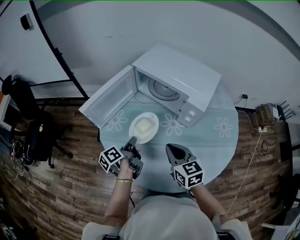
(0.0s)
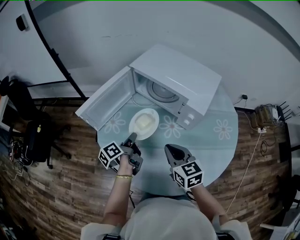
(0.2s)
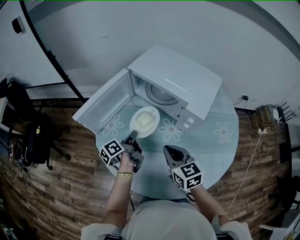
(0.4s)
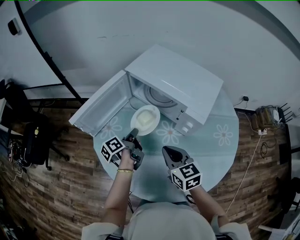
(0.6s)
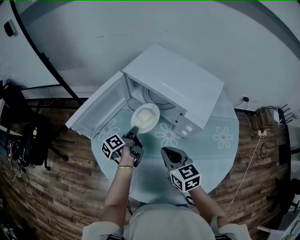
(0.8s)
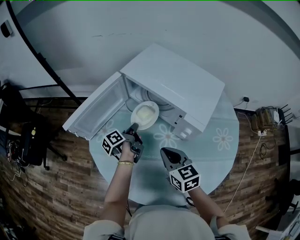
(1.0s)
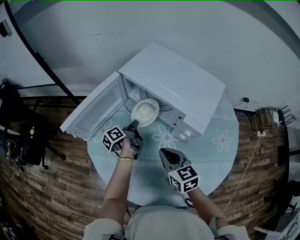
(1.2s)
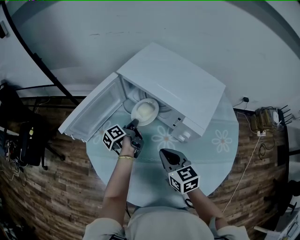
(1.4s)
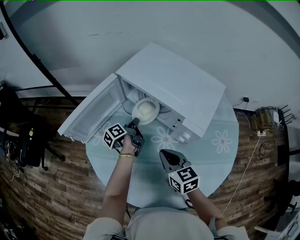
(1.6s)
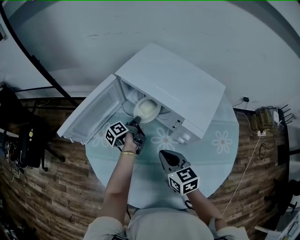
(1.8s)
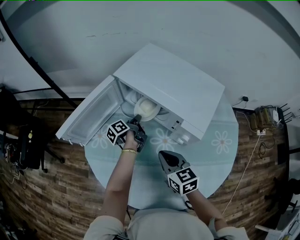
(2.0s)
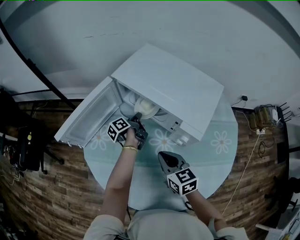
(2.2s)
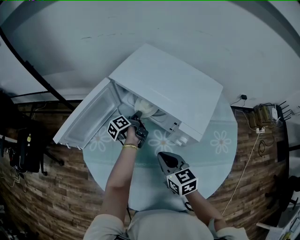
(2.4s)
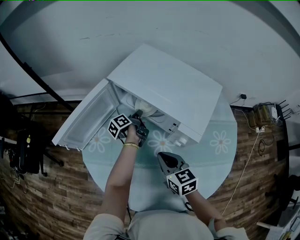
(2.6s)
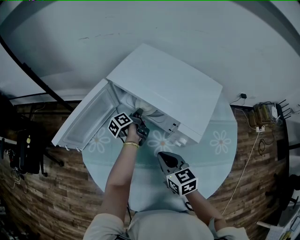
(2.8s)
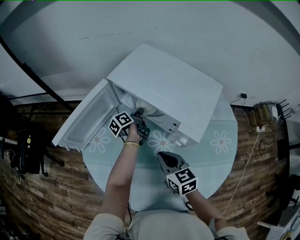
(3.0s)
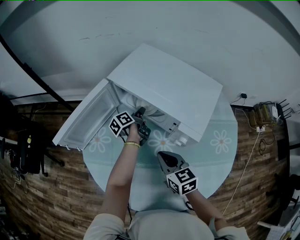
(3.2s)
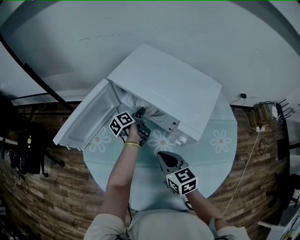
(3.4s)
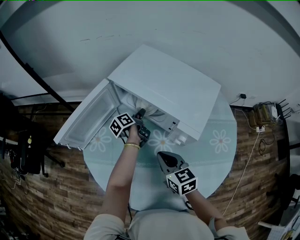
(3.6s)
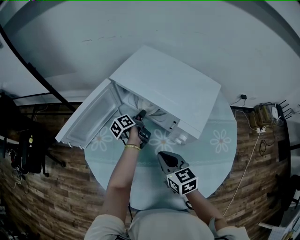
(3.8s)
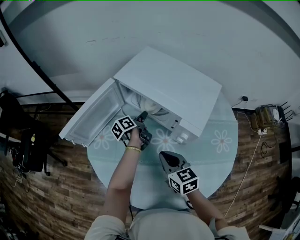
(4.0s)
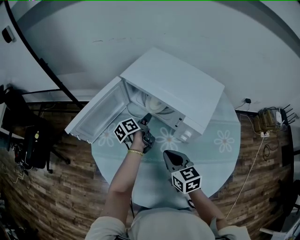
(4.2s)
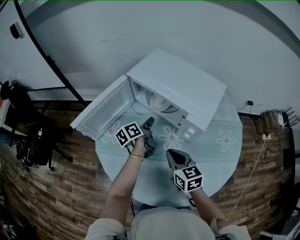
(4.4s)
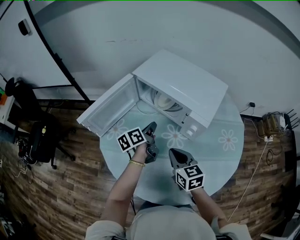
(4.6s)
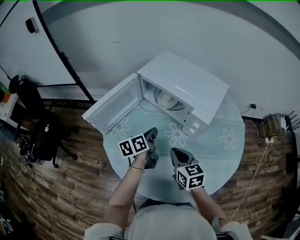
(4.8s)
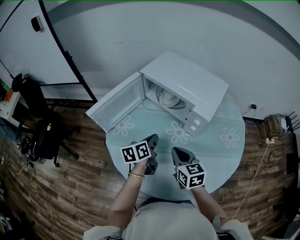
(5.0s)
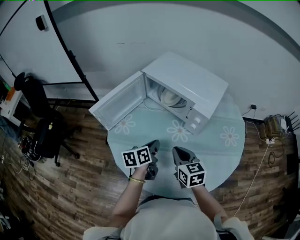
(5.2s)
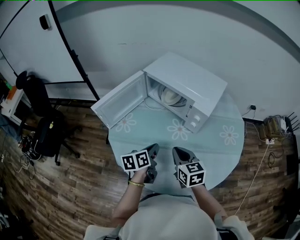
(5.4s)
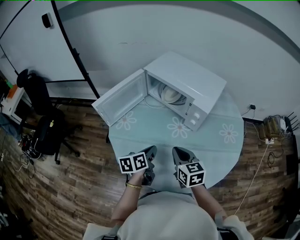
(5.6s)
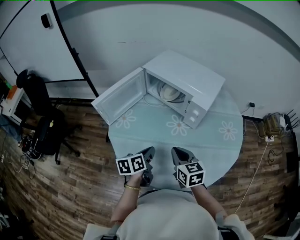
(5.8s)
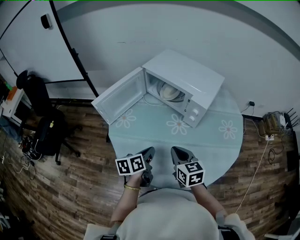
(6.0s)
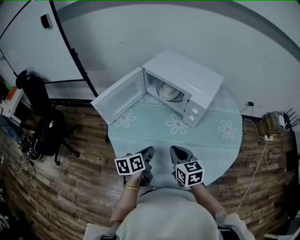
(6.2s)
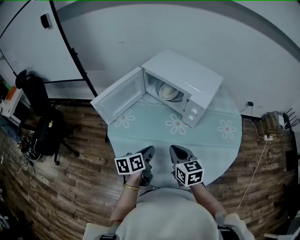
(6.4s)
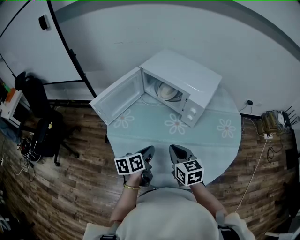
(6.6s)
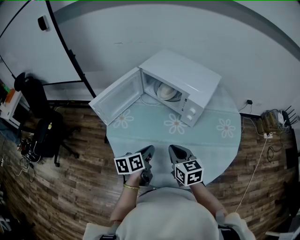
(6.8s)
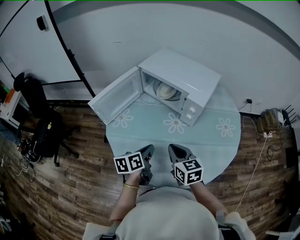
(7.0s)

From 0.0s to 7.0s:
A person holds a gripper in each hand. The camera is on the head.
From 0.0s to 1.4s: The right gripper shifts by about 10 cm.
From 4.2s to 5.6s: The right gripper ends up roughly 10 cm from where it was.

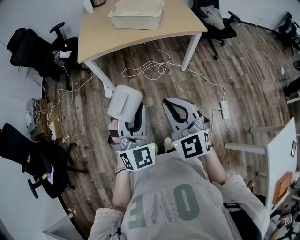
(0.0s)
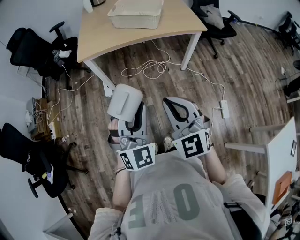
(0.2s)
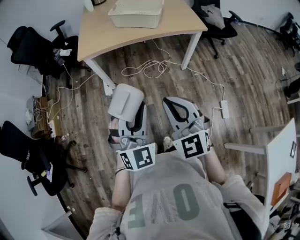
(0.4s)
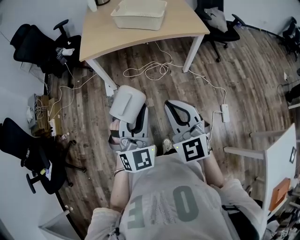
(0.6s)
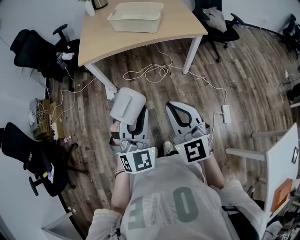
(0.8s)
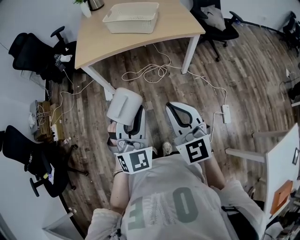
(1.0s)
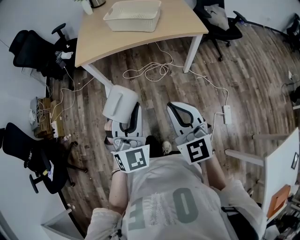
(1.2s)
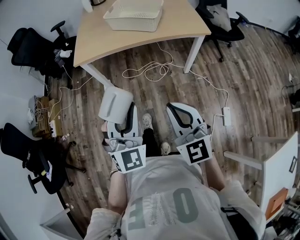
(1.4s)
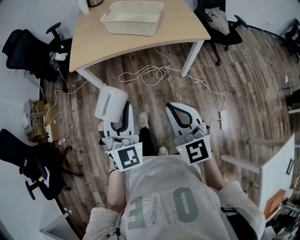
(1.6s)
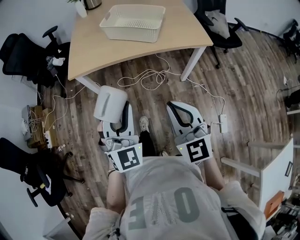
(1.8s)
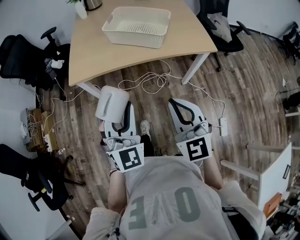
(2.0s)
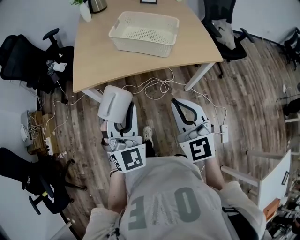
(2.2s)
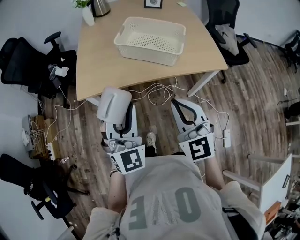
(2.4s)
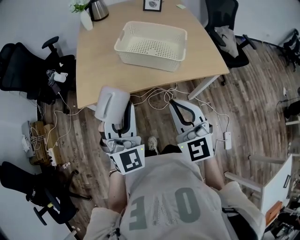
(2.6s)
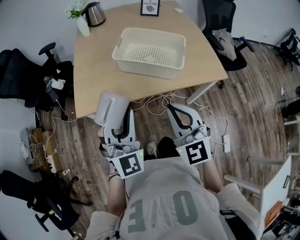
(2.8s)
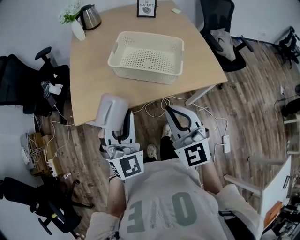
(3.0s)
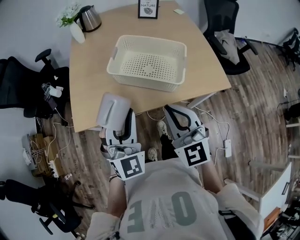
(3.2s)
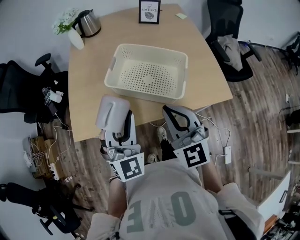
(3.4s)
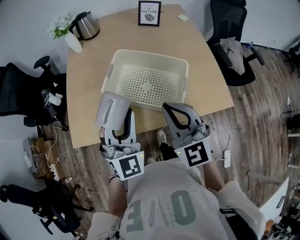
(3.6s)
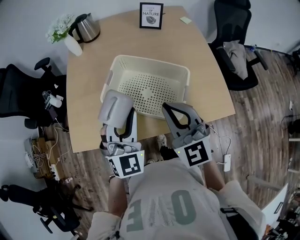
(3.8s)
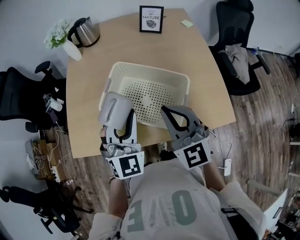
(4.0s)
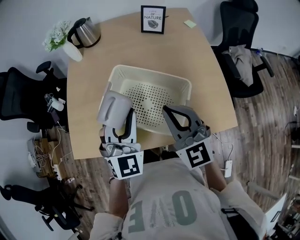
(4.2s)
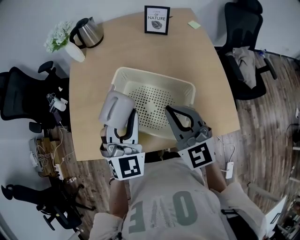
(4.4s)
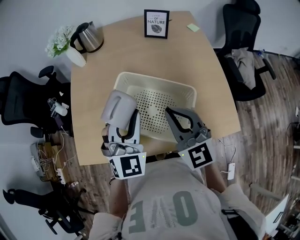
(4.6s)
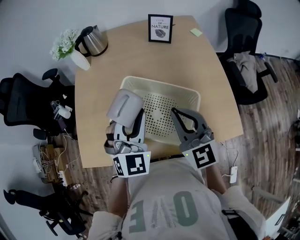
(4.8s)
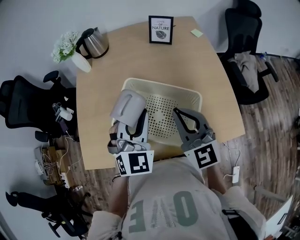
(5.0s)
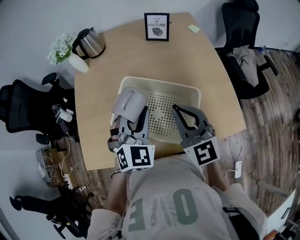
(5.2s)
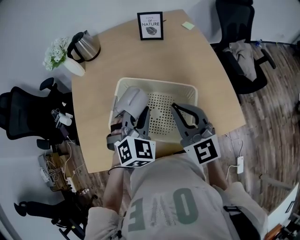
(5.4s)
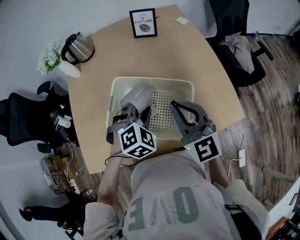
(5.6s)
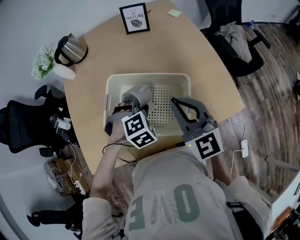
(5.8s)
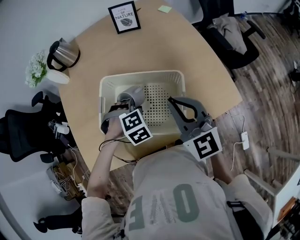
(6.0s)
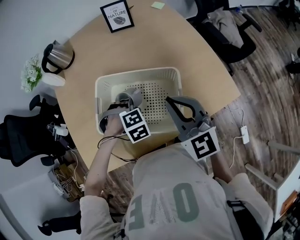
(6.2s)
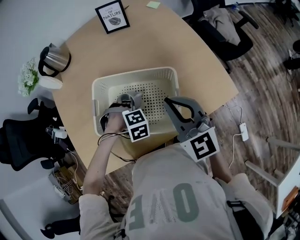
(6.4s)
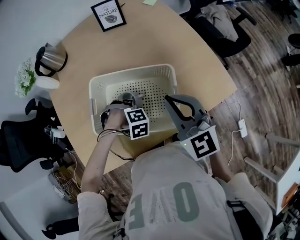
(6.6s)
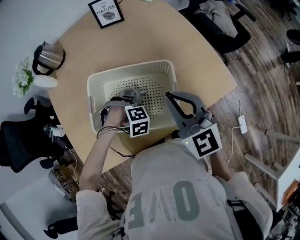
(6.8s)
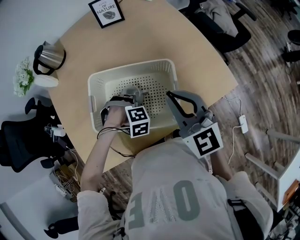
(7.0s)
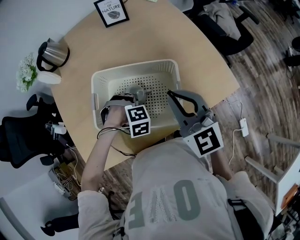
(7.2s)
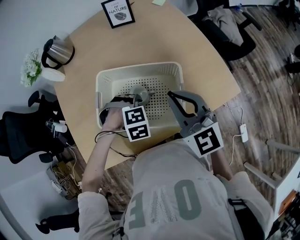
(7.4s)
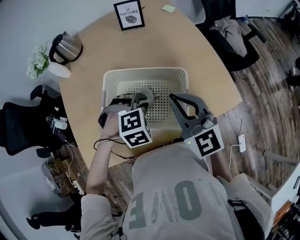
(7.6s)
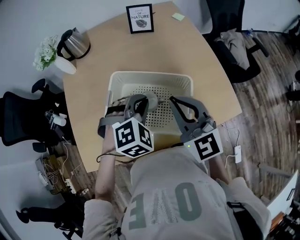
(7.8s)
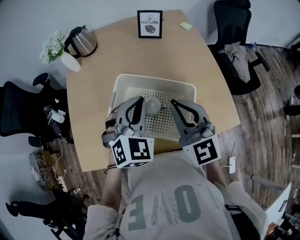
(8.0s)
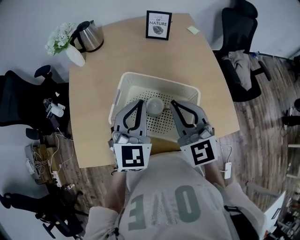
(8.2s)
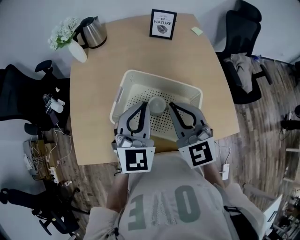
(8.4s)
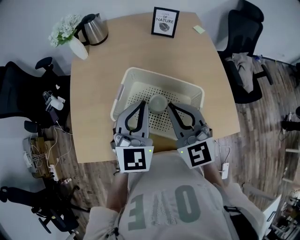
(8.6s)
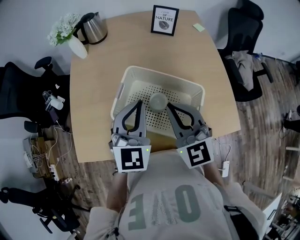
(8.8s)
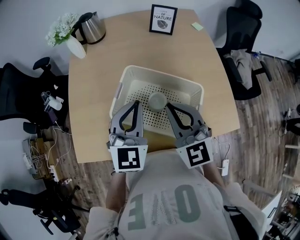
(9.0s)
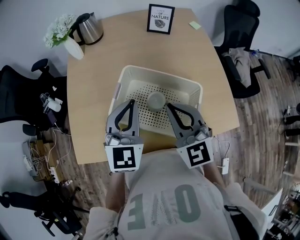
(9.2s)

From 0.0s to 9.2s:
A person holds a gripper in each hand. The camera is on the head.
From 0.0s to 1.6s: The left gripper heads forward, covering some 10 cm, while the right gripper is displaced forward and to the right by approximately 10 cm.
From 1.6s to 3.0s: The two grippers go roughly 35 cm forward.
From 3.0s to 4.6s: The right gripper goes roughly 30 cm forward. Meanwhile the left gripper shifts some 30 cm forward and to the right.
From 4.6s to 6.2s: The right gripper shifts roughly 5 cm to the right. Meanwhile the left gripper heads downward, covering approximately 20 cm, and angles its fingers downward, by some 60 degrees.
From 6.2s to 7.6s: The left gripper travels upward by about 10 cm.
From 7.6s to 9.2s: The right gripper goes about 10 cm to the left. Meanwhile the left gripper moves upward and to the left, some 15 cm, and tips its fingers upward by roughly 60 degrees.

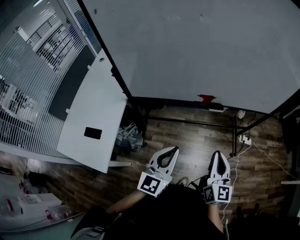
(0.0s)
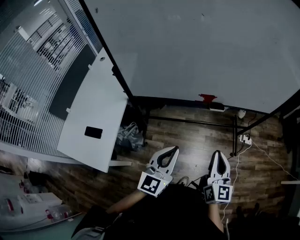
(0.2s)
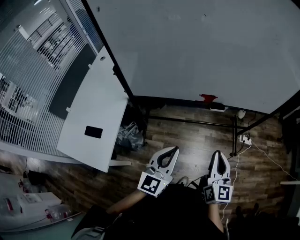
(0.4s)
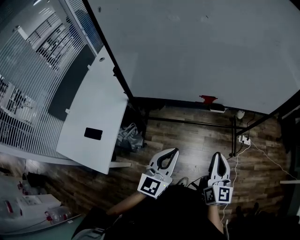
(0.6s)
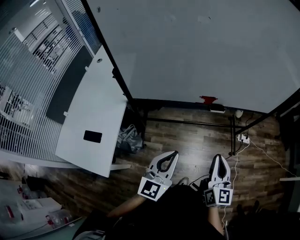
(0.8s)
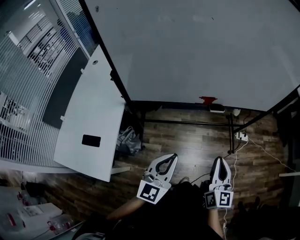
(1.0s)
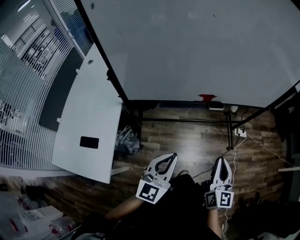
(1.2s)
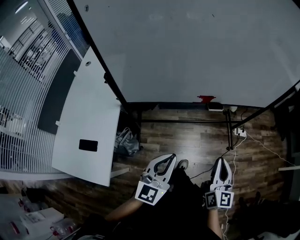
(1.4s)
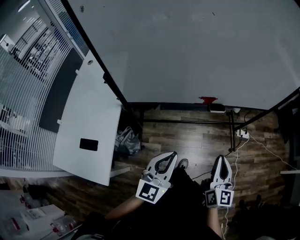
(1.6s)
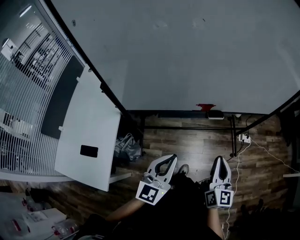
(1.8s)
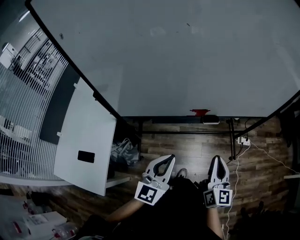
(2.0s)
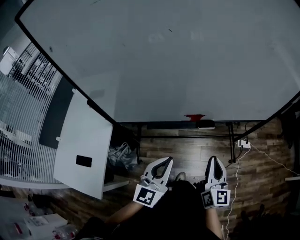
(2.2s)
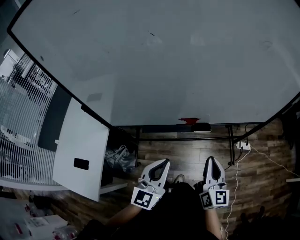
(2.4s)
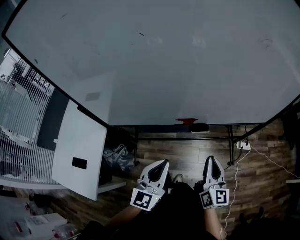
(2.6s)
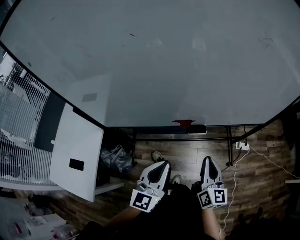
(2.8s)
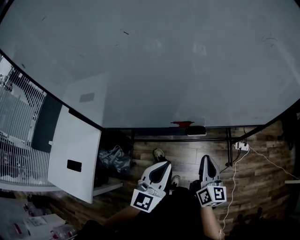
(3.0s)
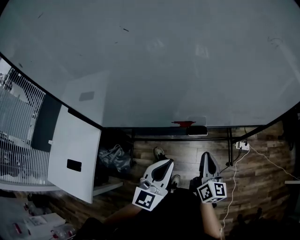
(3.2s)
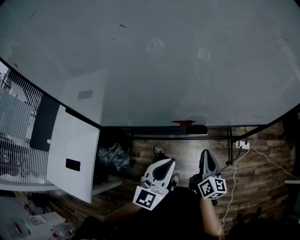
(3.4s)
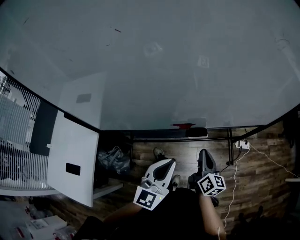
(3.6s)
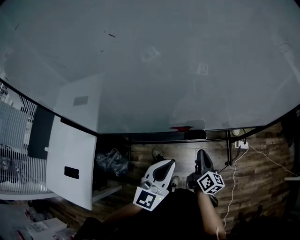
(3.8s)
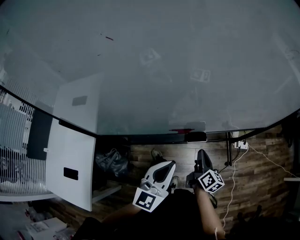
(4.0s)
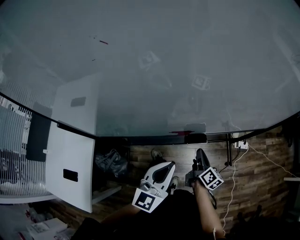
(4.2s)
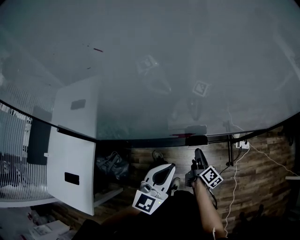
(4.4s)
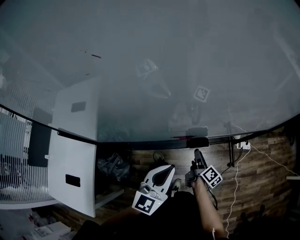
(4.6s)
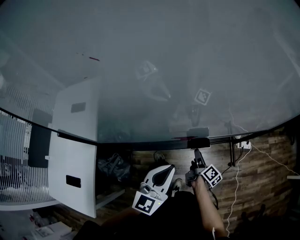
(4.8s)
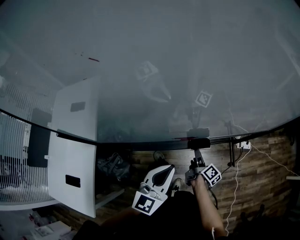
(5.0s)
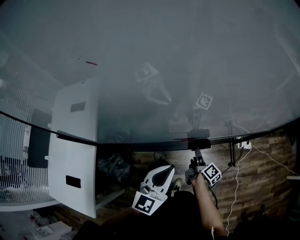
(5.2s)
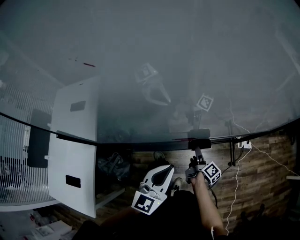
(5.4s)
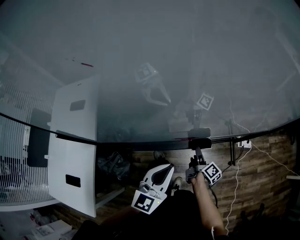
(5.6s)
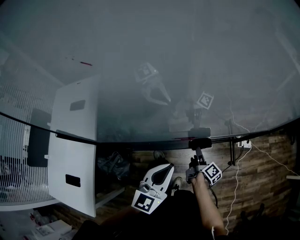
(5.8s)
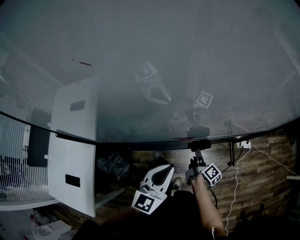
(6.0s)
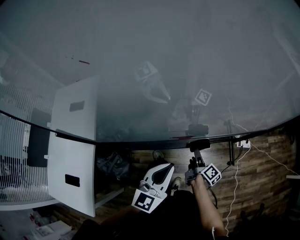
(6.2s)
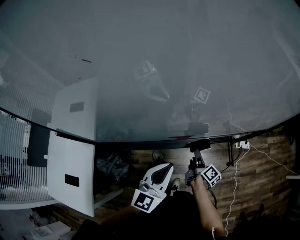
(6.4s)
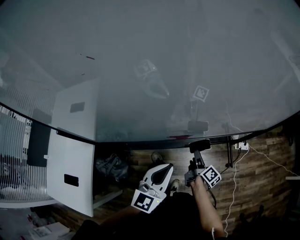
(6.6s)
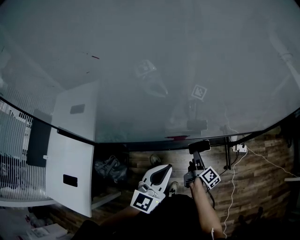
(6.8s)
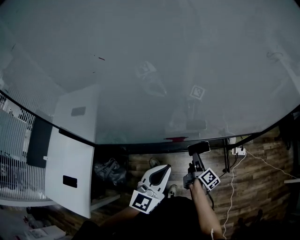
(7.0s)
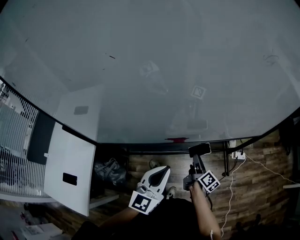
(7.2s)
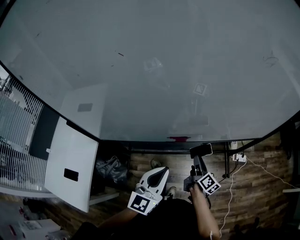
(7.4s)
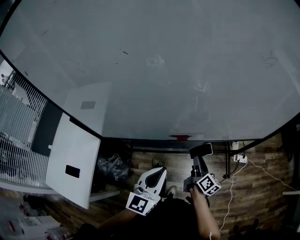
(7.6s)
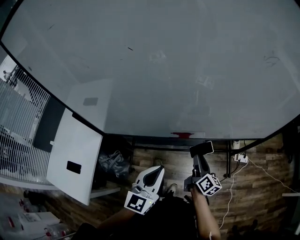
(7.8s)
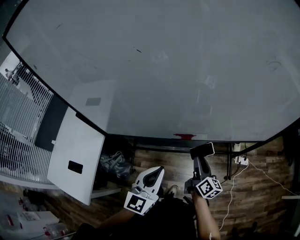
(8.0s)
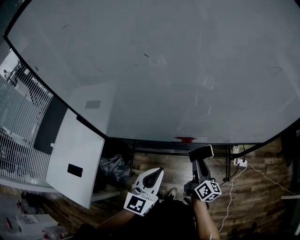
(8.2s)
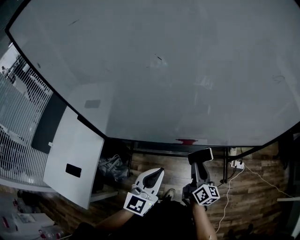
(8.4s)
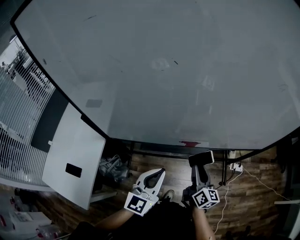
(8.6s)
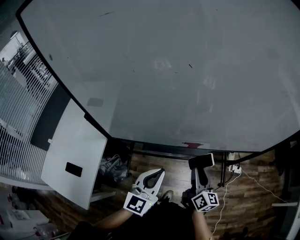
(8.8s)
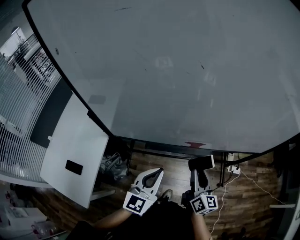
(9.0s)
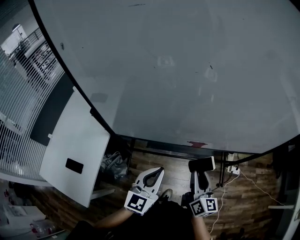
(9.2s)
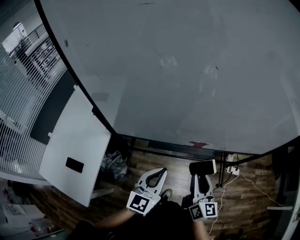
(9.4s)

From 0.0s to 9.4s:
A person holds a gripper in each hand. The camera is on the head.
From 0.0s to 1.6s: The grippers make only small movements.
From 1.6s to 3.2s: The left gripper travels forward and to the right by roughly 20 cm, while the right gripper goes about 20 cm forward and downward.
From 3.2s to 4.8s: The left gripper is displaced forward by roughly 5 cm, while the right gripper shifts about 20 cm downward and forward, rolls clockwise, seen from behind, by approximately 40 degrees, and opens.
From 4.8s to 6.2s: The grippers move only a little.
From 6.2s to 7.8s: The right gripper moves upward, approximately 10 cm, and rotates approximately 30 degrees. The left gripper heads backward and upward, covering roughly 10 cm.
From 7.8s to 9.4s: The right gripper moves upward, to the left and backward, some 20 cm, and rotates some 30 degrees; the left gripper travels to the left by some 10 cm.
